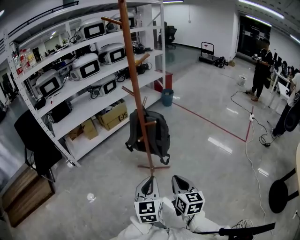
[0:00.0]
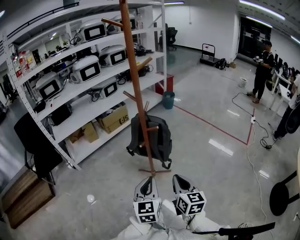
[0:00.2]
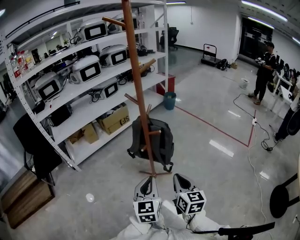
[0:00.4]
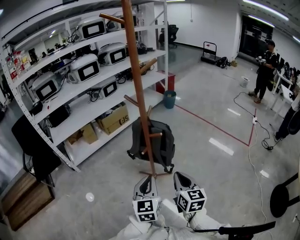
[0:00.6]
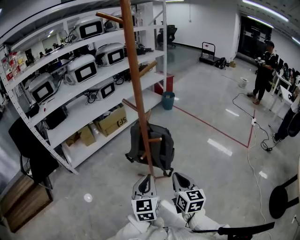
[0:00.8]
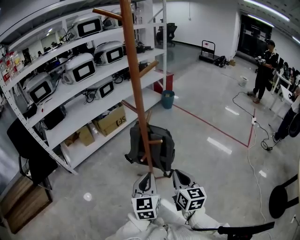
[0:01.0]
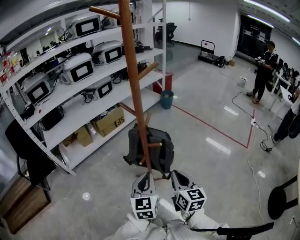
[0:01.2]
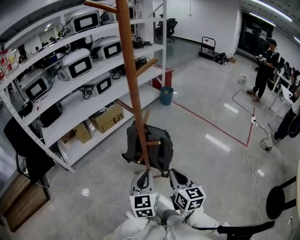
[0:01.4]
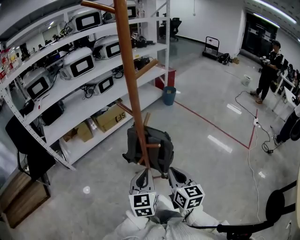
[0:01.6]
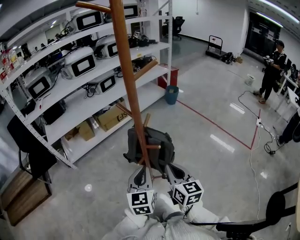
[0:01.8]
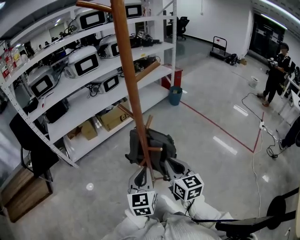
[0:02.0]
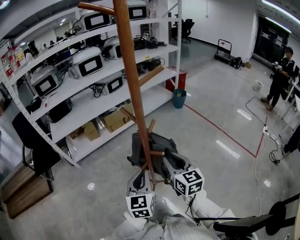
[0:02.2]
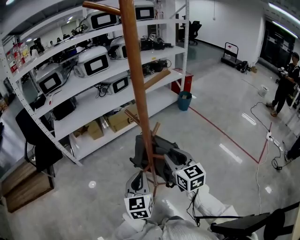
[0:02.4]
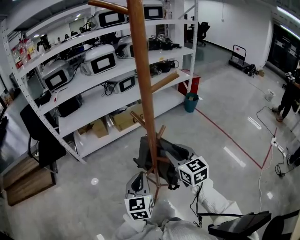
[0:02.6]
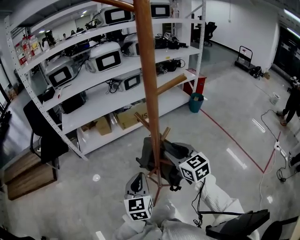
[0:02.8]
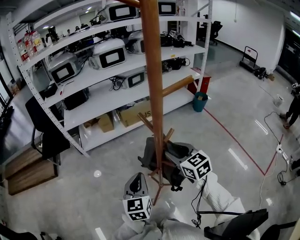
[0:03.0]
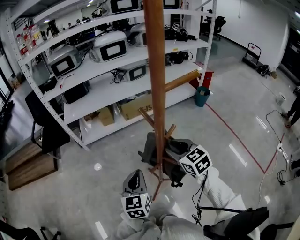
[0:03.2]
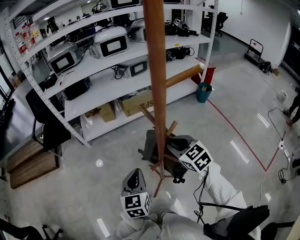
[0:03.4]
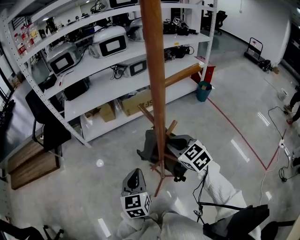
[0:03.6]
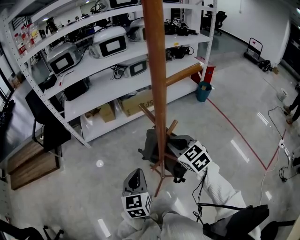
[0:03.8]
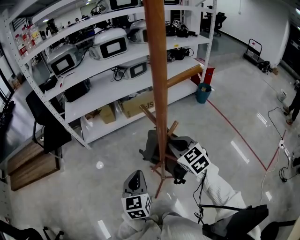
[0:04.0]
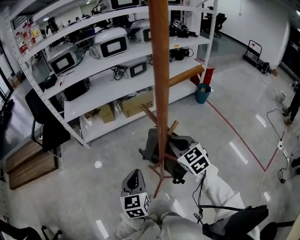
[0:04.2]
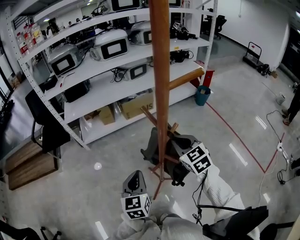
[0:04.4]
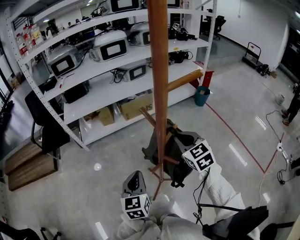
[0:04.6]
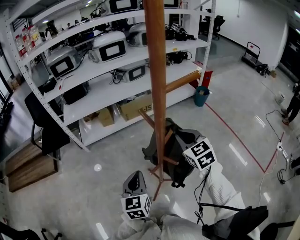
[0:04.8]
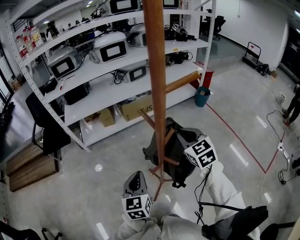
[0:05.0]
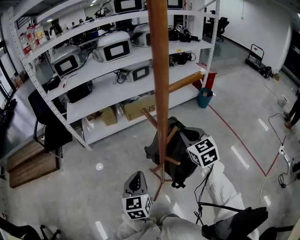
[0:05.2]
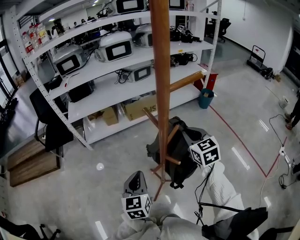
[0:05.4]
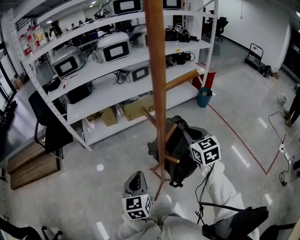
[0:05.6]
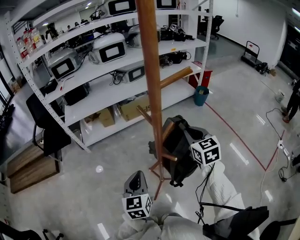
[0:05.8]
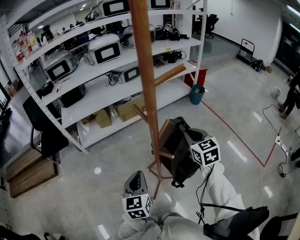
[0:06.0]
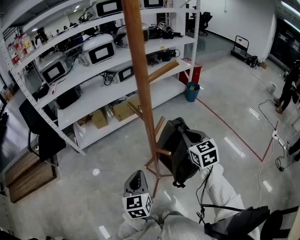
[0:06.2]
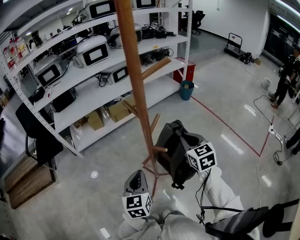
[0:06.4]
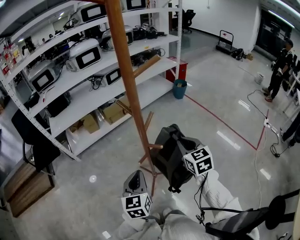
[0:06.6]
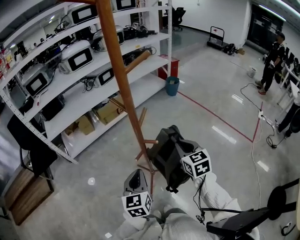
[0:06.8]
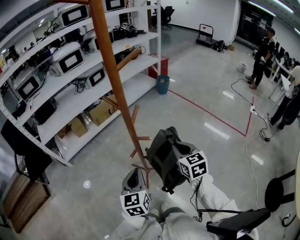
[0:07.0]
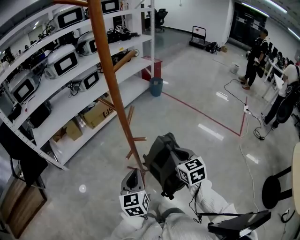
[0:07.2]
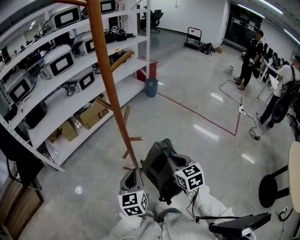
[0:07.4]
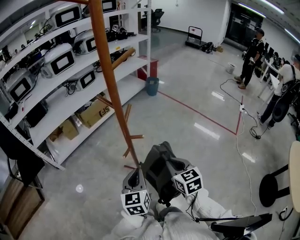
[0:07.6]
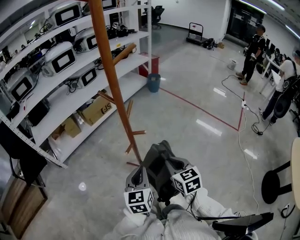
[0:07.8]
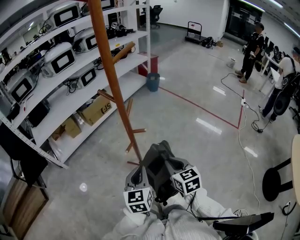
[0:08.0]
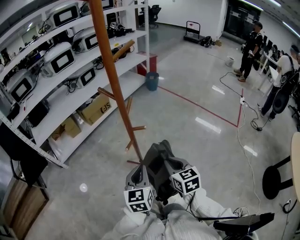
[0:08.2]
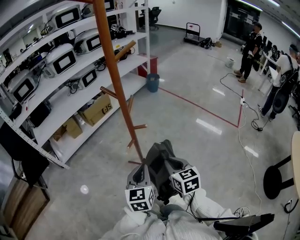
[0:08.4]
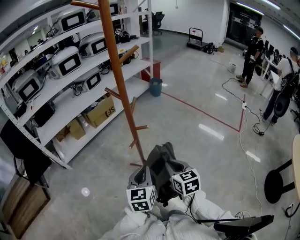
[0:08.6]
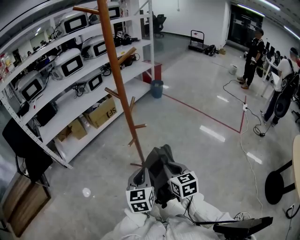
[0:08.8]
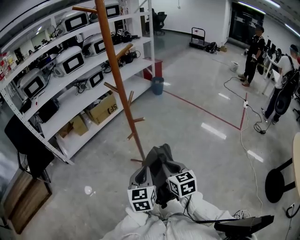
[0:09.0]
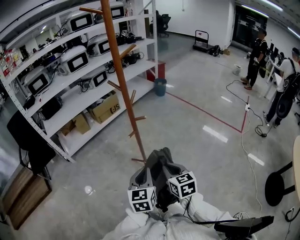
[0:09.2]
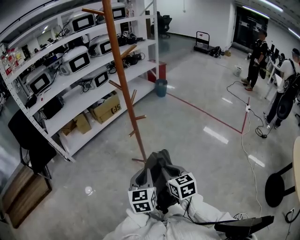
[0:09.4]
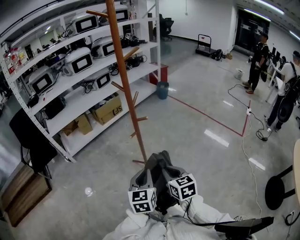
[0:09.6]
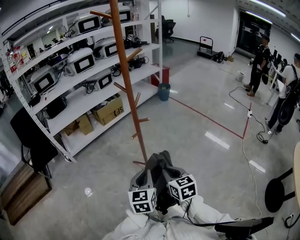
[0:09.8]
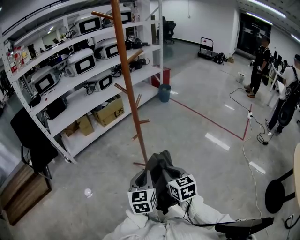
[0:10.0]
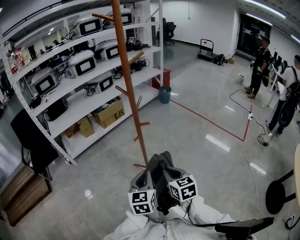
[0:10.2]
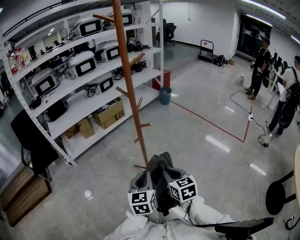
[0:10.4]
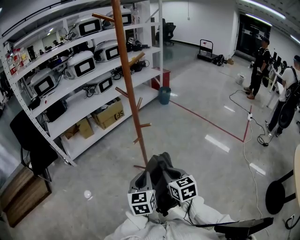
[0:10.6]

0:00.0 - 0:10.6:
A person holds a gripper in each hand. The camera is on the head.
0:00.0 - 0:01.6: The grippers both shift forward by roughly 20 cm.
0:01.6 - 0:03.0: The right gripper shifts by some 20 cm, swivels roughly 40 degrees, and opens its fingers; the left gripper ends up approximately 10 cm from where it was, and turns by about 20 degrees.
0:03.0 - 0:04.6: The right gripper closes up.
0:04.6 - 0:06.0: The right gripper goes about 5 cm to the right.
0:06.0 - 0:07.6: The right gripper moves backward, about 25 cm. Meanwhile the left gripper shifts approximately 10 cm to the right and backward, and turns by roughly 20 degrees.
0:07.6 - 0:09.0: The grippers both shift backward by about 10 cm.
0:09.0 - 0:10.6: The grippers make only small movements.

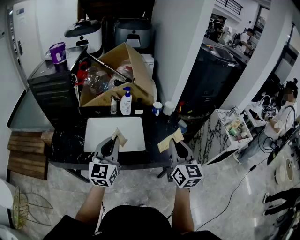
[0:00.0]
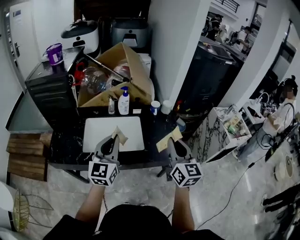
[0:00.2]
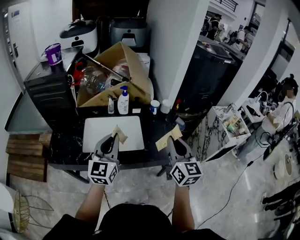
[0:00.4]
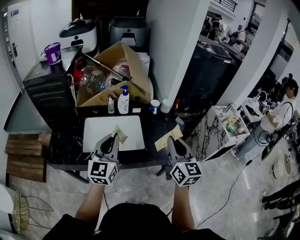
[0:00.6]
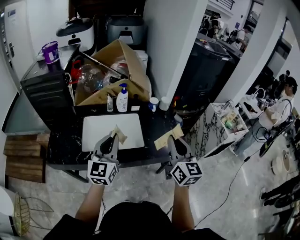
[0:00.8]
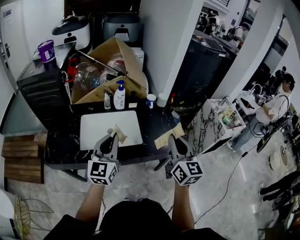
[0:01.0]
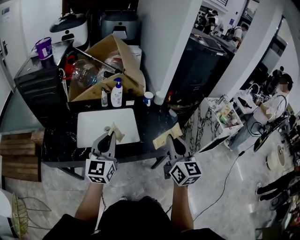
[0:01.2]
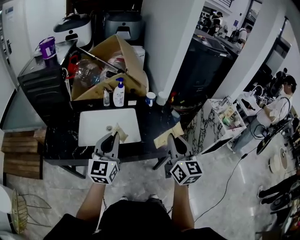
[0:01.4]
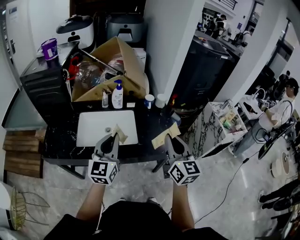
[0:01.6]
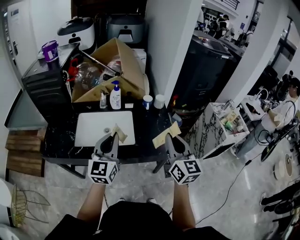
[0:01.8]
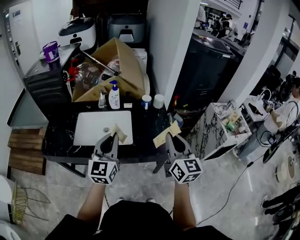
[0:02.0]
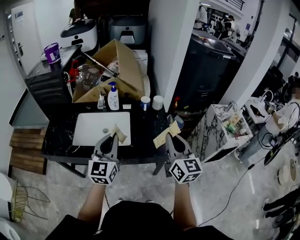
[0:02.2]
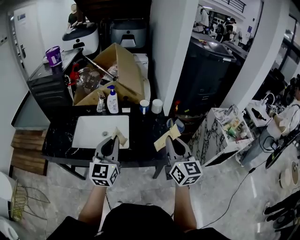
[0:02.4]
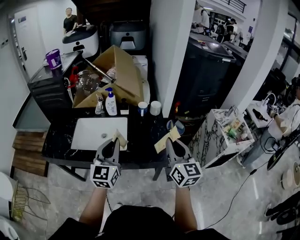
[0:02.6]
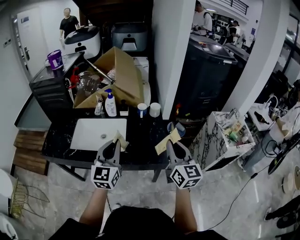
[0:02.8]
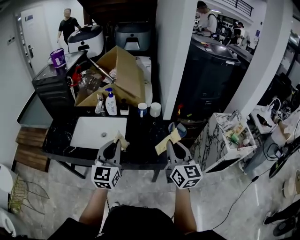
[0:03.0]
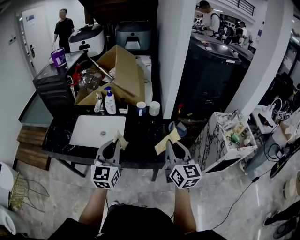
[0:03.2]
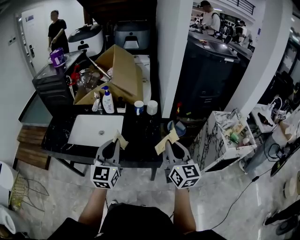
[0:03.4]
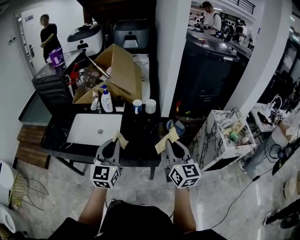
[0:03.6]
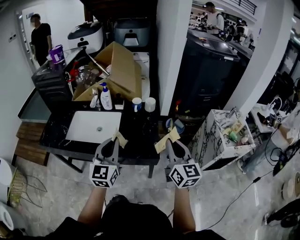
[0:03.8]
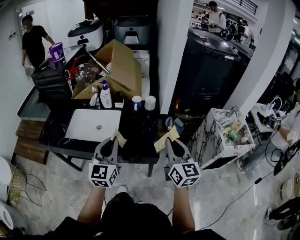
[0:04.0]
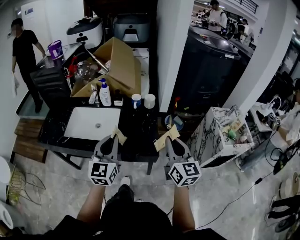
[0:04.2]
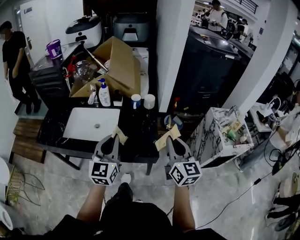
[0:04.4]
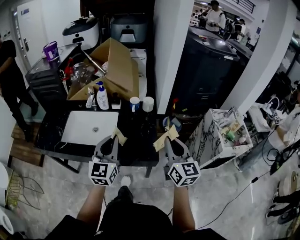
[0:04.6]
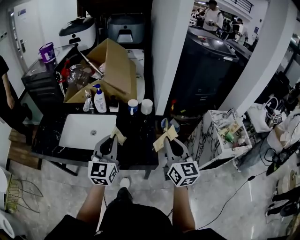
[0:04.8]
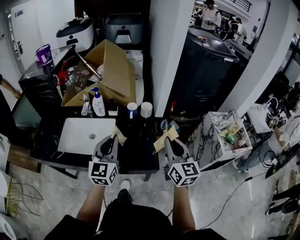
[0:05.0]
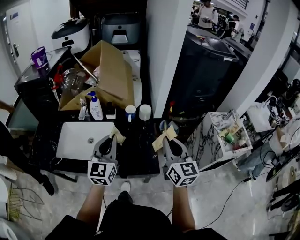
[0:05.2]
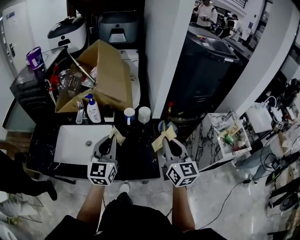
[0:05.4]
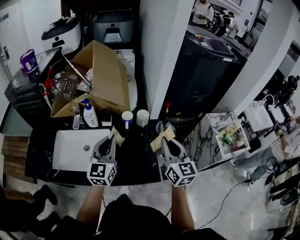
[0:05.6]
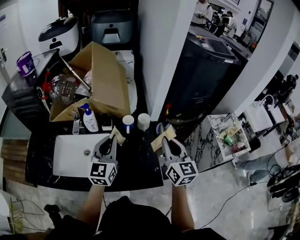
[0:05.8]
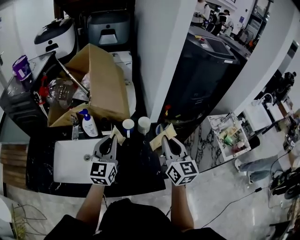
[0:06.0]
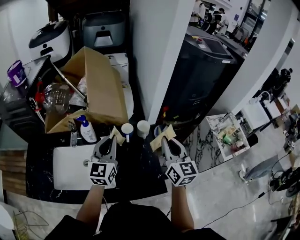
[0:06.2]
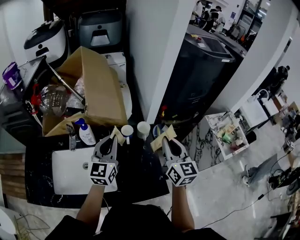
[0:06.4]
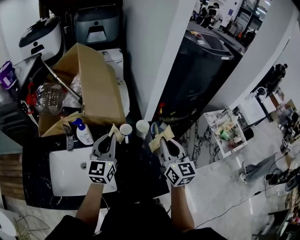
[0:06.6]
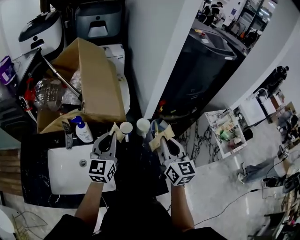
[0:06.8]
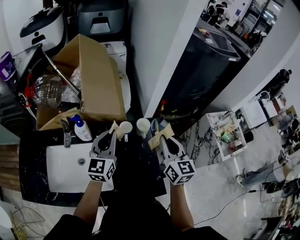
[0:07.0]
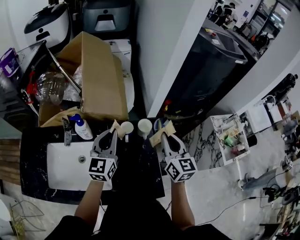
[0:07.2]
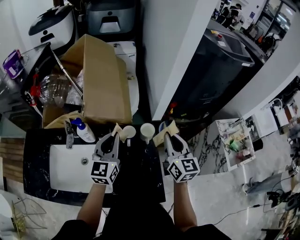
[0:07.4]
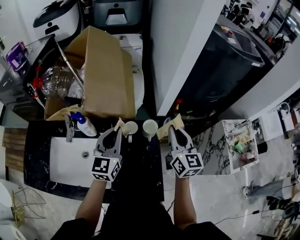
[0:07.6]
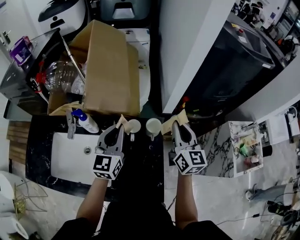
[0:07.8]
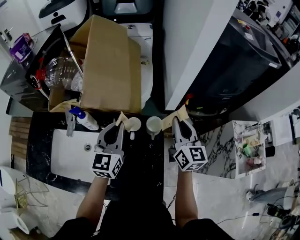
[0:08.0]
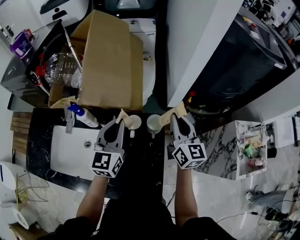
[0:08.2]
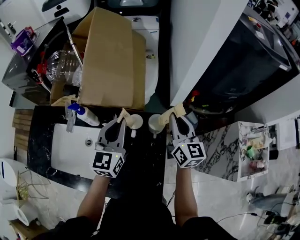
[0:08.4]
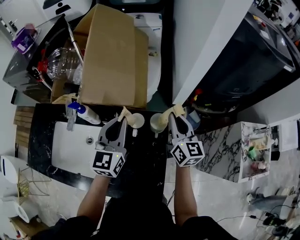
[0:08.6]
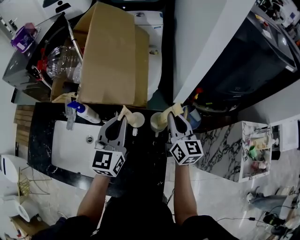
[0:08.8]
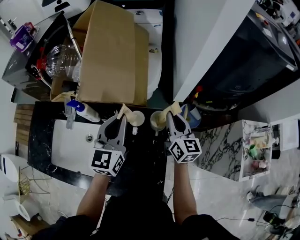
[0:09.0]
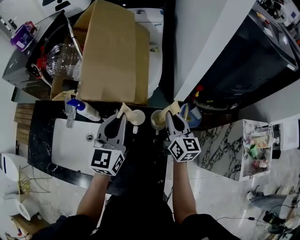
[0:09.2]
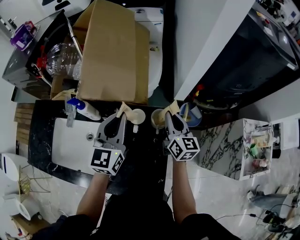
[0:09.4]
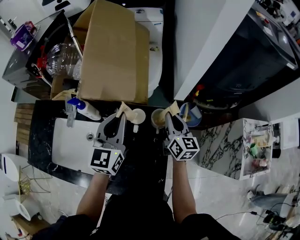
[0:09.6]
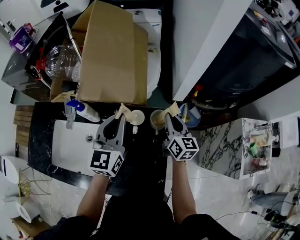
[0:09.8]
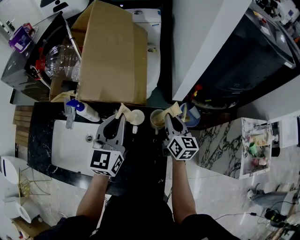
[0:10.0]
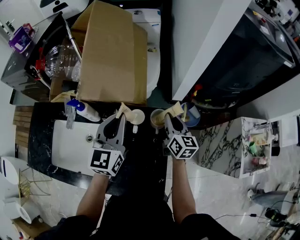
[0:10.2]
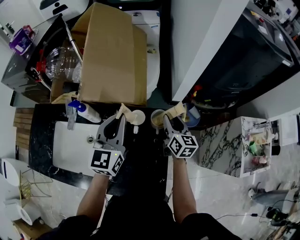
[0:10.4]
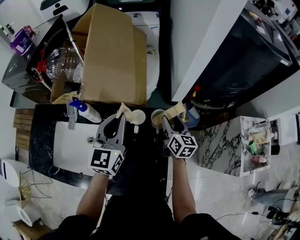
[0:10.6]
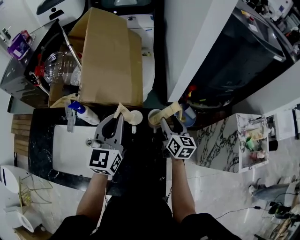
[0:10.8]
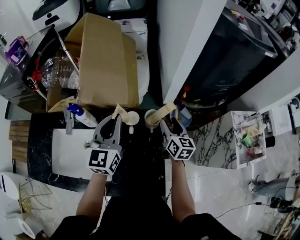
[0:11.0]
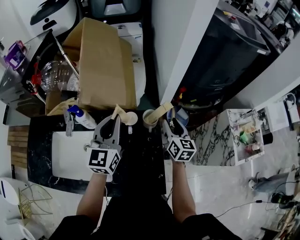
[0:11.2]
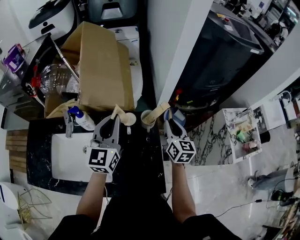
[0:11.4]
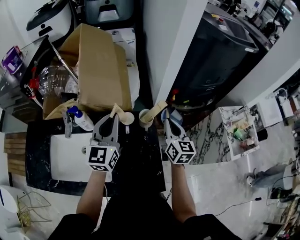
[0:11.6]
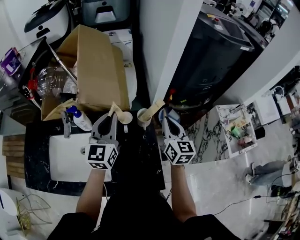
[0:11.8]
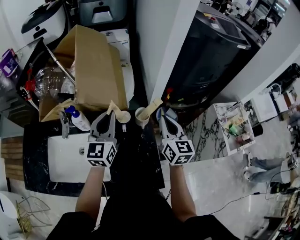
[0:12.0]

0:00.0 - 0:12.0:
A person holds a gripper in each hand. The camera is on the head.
0:00.0 - 0:01.6: The grippers stay close to where they were, moving slightly.
0:01.6 - 0:03.0: The grippers both shift to the right by approximately 15 cm.
0:03.0 - 0:04.4: The right gripper moves roughly 5 cm.
0:04.4 - 0:06.0: The grippers both shift forward by about 25 cm.
0:06.0 - 0:07.6: The two grippers go some 15 cm forward.
0:07.6 - 0:09.0: The right gripper heads downward and forward, covering about 15 cm.
0:09.0 - 0:10.4: The right gripper shifts about 5 cm downward, and opens.
0:10.4 - 0:12.0: The right gripper shifts some 20 cm upward and backward, and closes.

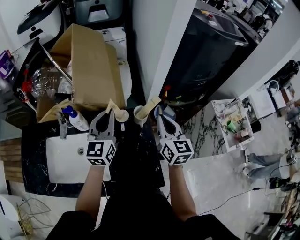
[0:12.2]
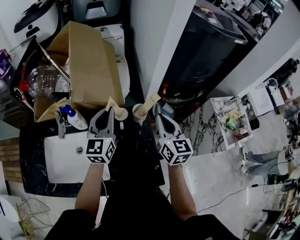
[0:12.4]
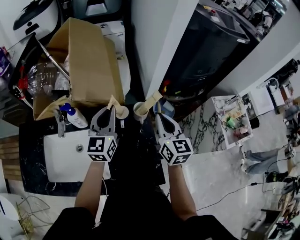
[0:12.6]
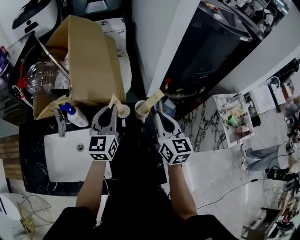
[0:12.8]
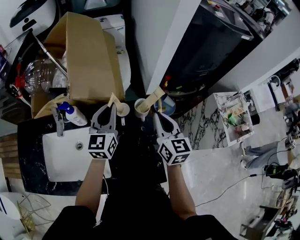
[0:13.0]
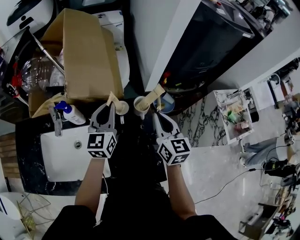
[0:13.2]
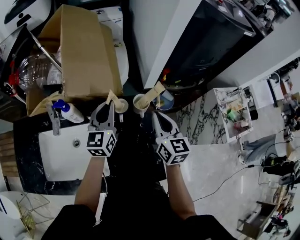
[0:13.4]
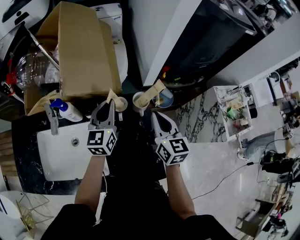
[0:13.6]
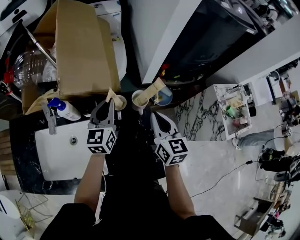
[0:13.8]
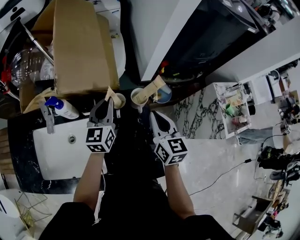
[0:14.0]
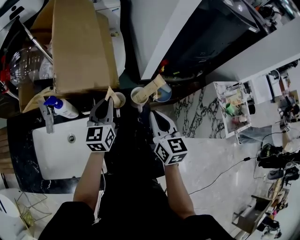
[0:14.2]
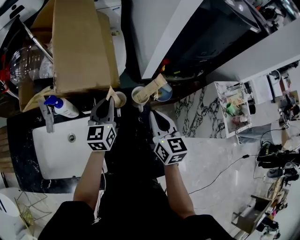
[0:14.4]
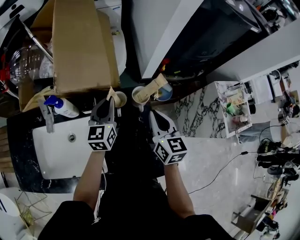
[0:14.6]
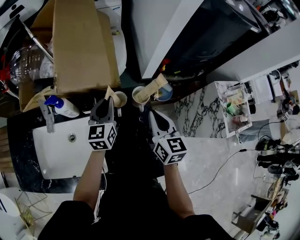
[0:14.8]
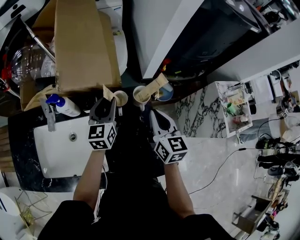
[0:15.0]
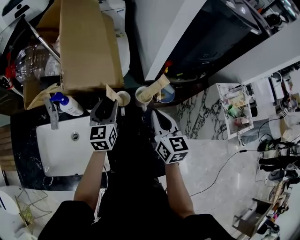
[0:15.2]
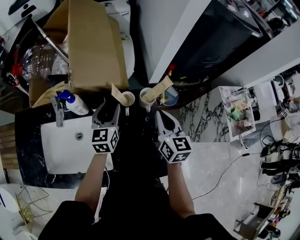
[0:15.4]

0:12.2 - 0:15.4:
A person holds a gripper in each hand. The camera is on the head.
0:12.2 - 0:13.8: The left gripper heads downward, covering approximately 10 cm, while the right gripper travels downward by some 5 cm.
0:13.8 - 0:15.4: The left gripper ends up approximately 5 cm from where it was, and opens its fingers.
